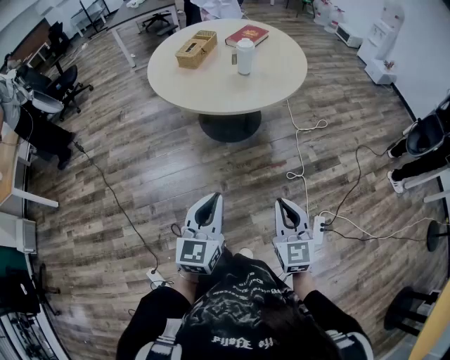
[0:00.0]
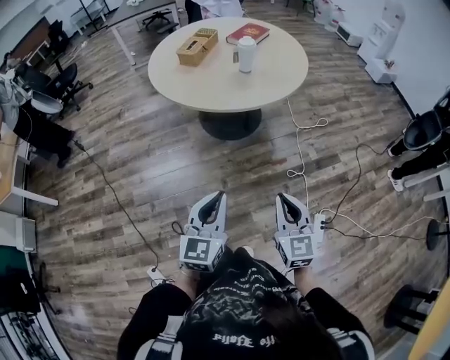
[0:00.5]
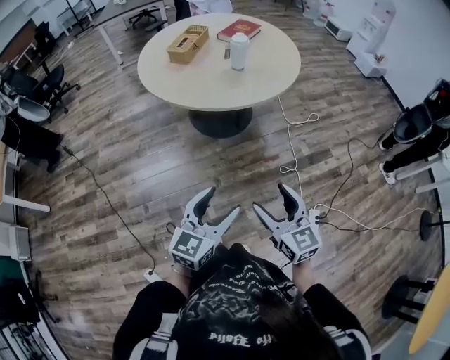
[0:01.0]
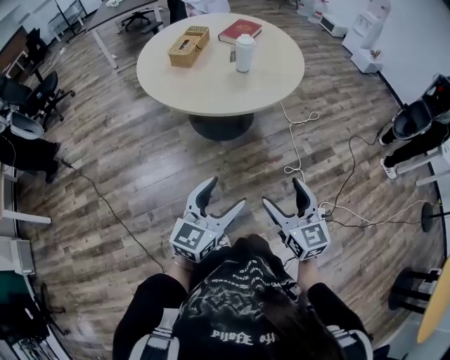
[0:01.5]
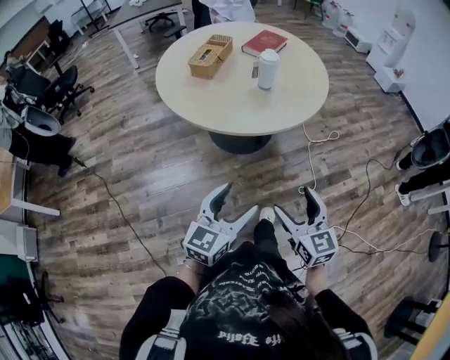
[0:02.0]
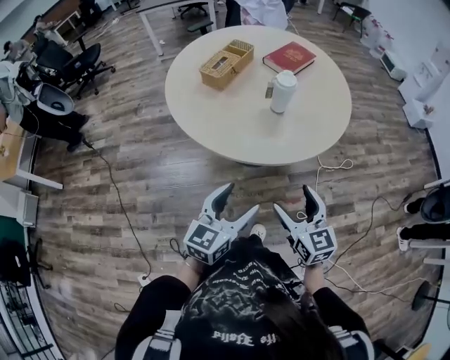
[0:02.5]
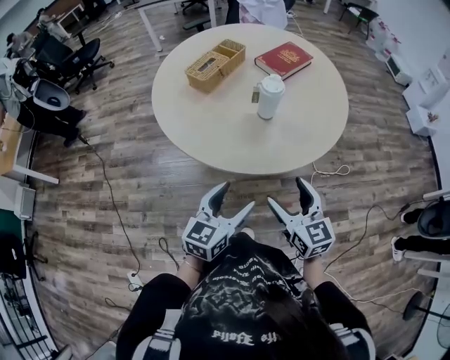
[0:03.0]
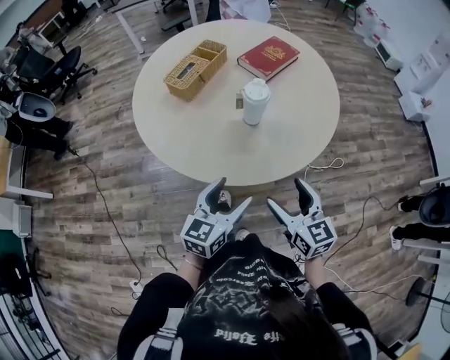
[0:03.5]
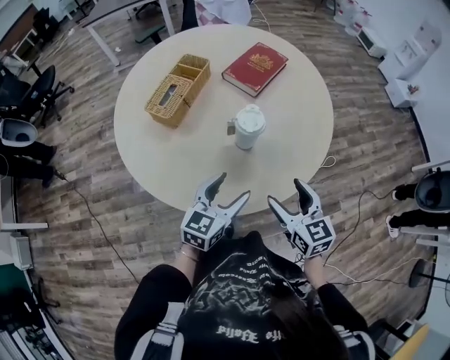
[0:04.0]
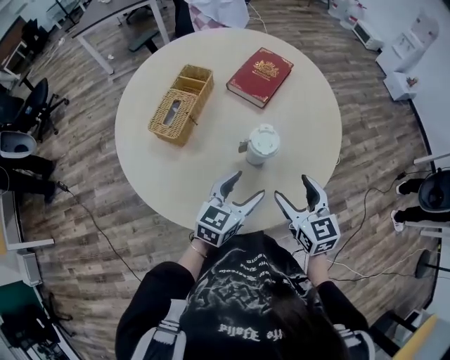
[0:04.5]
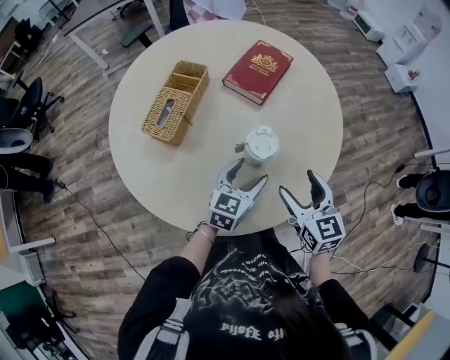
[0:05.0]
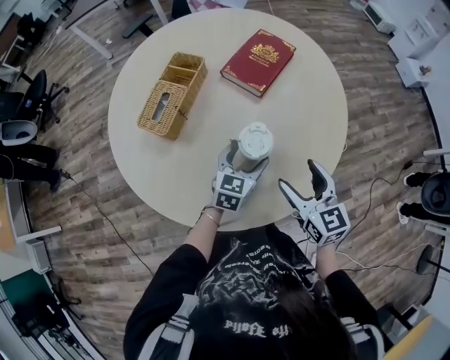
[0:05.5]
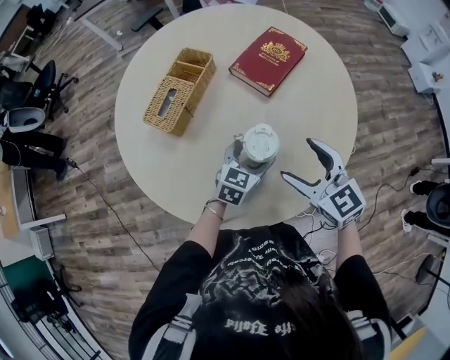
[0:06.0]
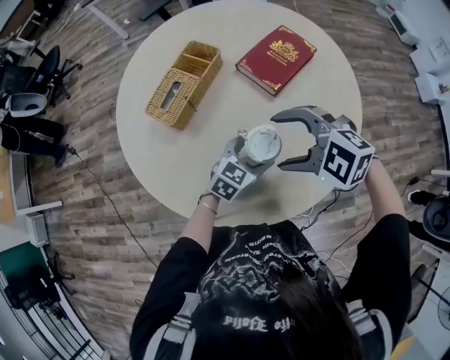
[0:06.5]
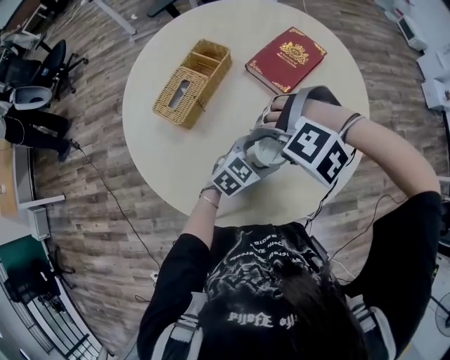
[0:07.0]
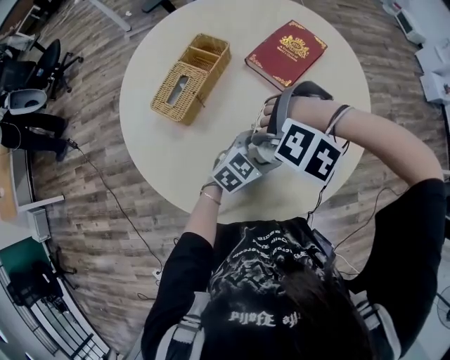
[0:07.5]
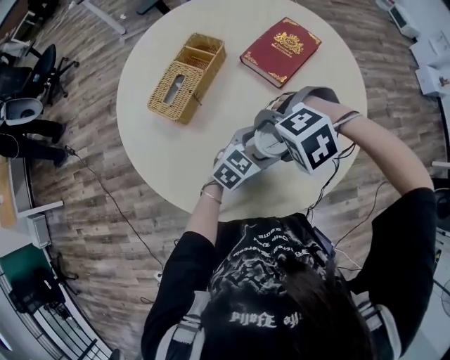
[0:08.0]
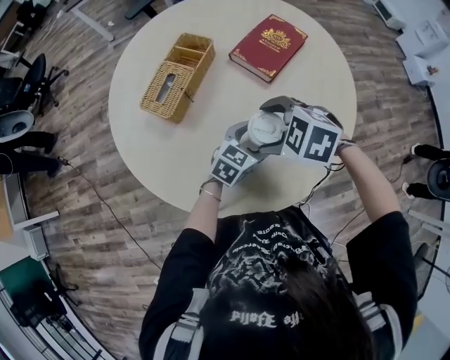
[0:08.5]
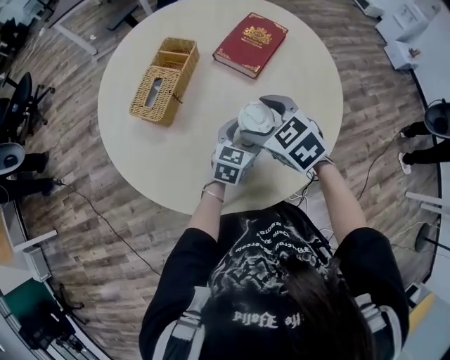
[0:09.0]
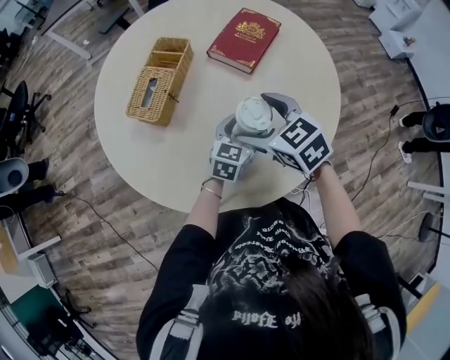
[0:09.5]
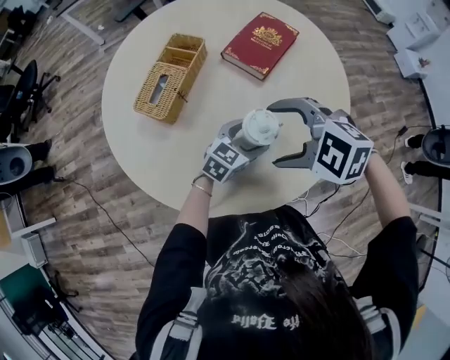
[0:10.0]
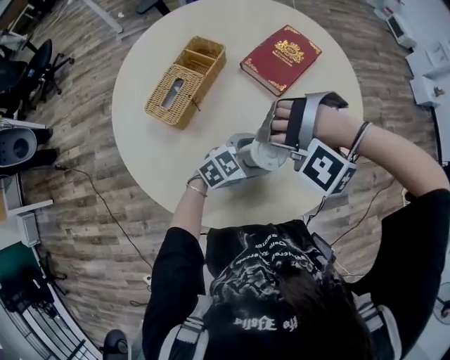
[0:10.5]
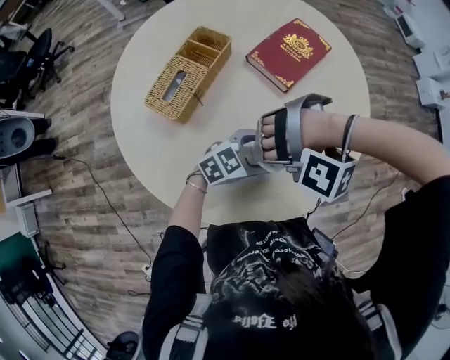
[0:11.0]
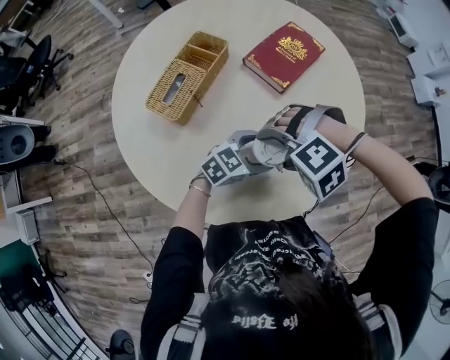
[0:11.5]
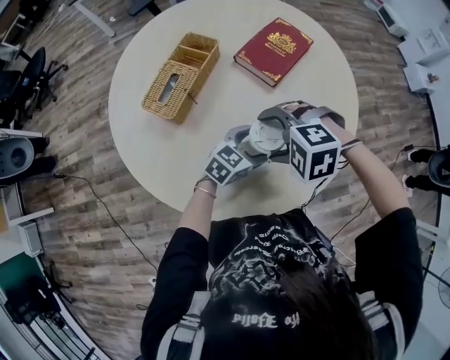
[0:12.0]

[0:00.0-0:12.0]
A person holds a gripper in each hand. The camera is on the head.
0:00.0 to 0:02.0: The right gripper goes approximately 15 cm forward and to the left, and opens its fingers; the left gripper shifts approximately 15 cm forward, and opens its fingers.
0:02.0 to 0:04.0: The pair of grippers is taken forward, some 40 cm.
0:04.0 to 0:06.0: The left gripper travels forward and downward by approximately 20 cm; the right gripper goes about 15 cm forward, and changes its angle by some 20 degrees.
0:06.0 to 0:08.0: The right gripper shifts by approximately 10 cm, and angles its fingers downward, by roughly 50 degrees.
0:08.0 to 0:10.0: The right gripper is displaced upward by approximately 5 cm, and swivels some 40 degrees.
0:10.0 to 0:12.0: The right gripper travels downward by approximately 5 cm, and turns by approximately 20 degrees.

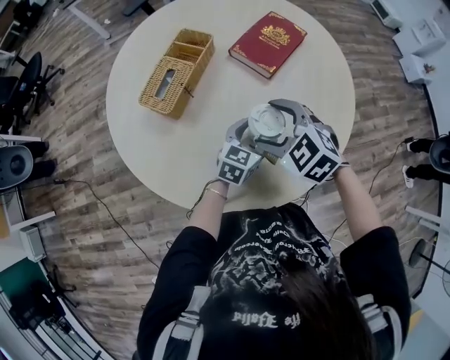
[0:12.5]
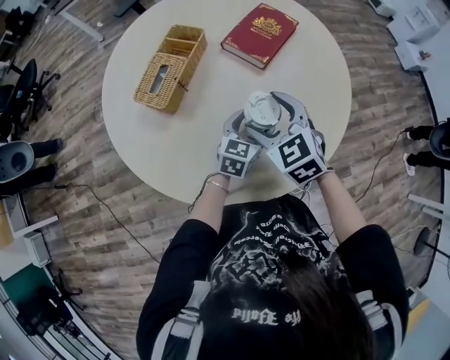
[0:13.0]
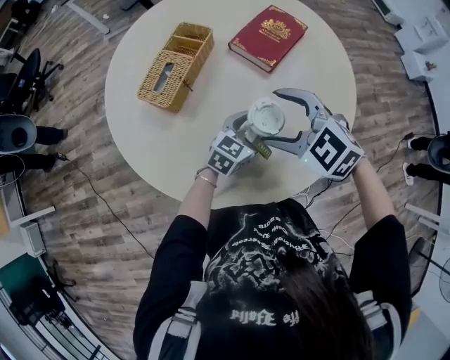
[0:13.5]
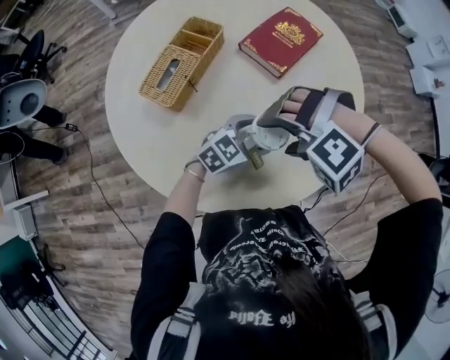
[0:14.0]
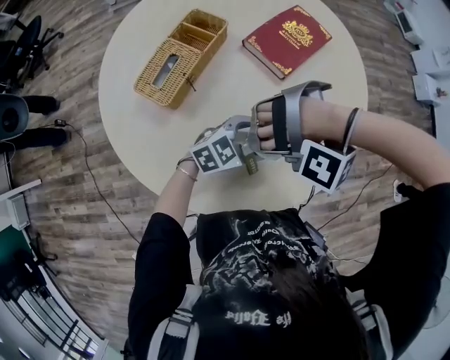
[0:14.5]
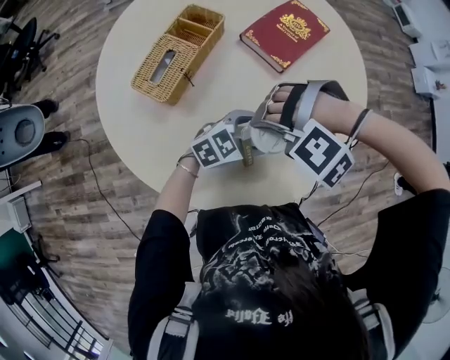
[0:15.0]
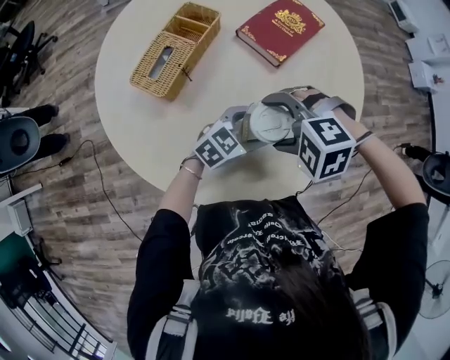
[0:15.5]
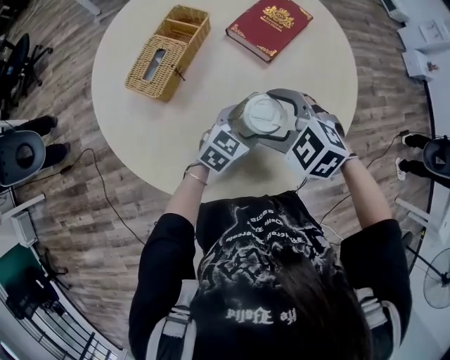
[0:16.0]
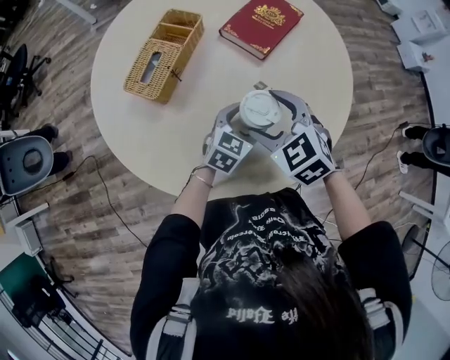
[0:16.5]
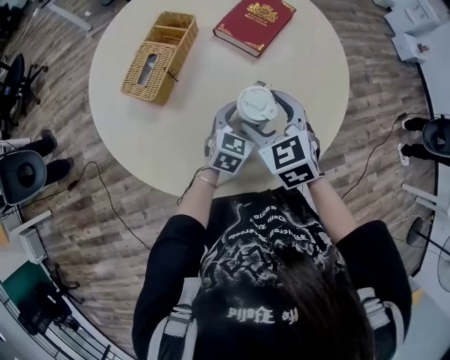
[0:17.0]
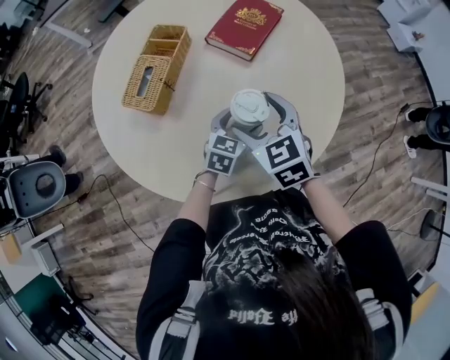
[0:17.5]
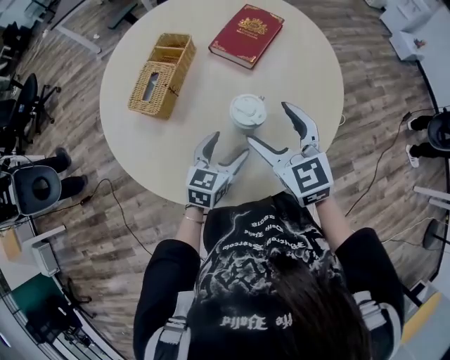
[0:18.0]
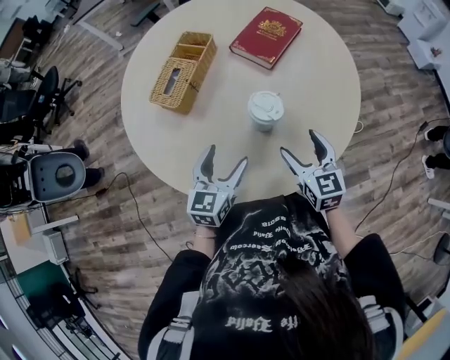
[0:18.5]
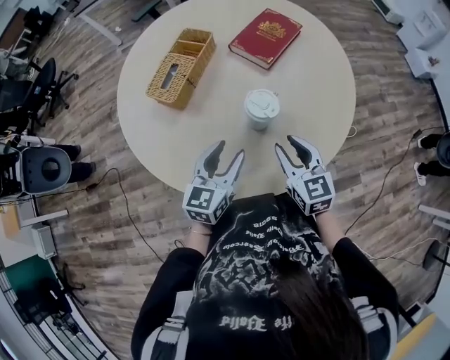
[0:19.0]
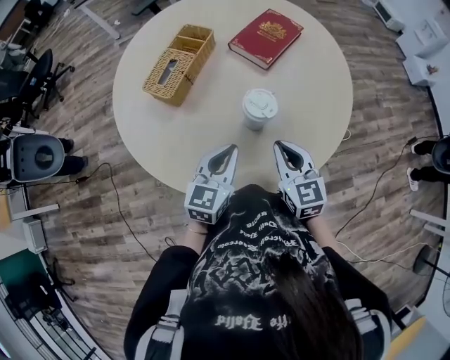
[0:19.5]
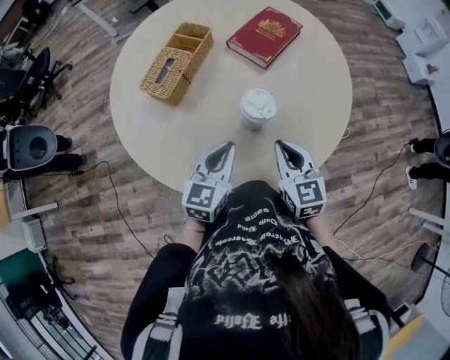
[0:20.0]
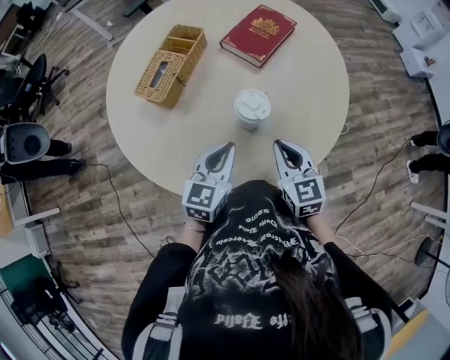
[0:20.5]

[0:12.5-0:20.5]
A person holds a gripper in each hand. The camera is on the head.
0:12.5 to 0:14.5: The left gripper changes its angle by roughly 30 degrees, while the right gripper rotates around the line of its fingers by roughly 110 degrees, counterclockwise from behind.
0:14.5 to 0:16.5: The left gripper rotates approximately 30 degrees. Meanwhile the right gripper rolls clockwise, seen from behind, by about 120 degrees.
0:16.5 to 0:18.5: The right gripper travels to the right and backward by roughly 10 cm, and turns by approximately 40 degrees. Meanwhile the left gripper is displaced backward, to the left and upward by approximately 15 cm, and changes its angle by some 20 degrees.
0:18.5 to 0:20.5: The left gripper closes. The right gripper closes its fingers.

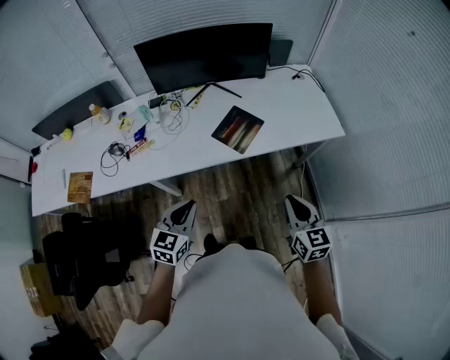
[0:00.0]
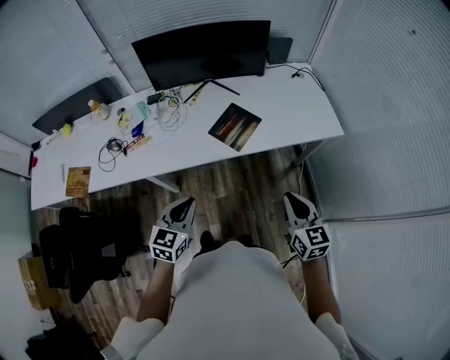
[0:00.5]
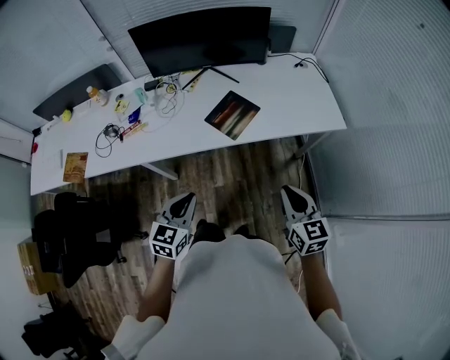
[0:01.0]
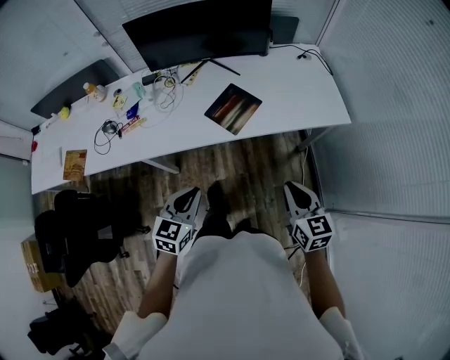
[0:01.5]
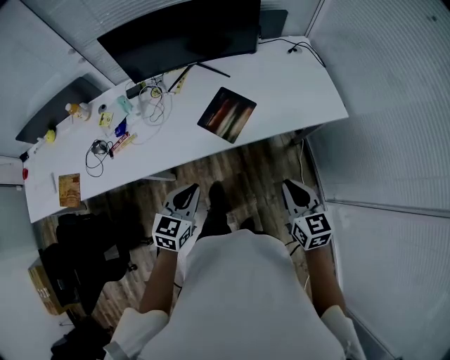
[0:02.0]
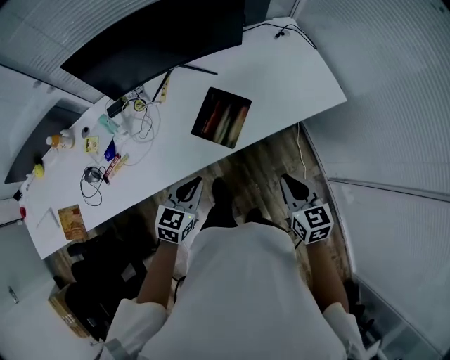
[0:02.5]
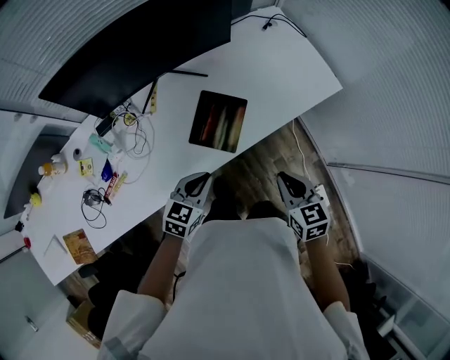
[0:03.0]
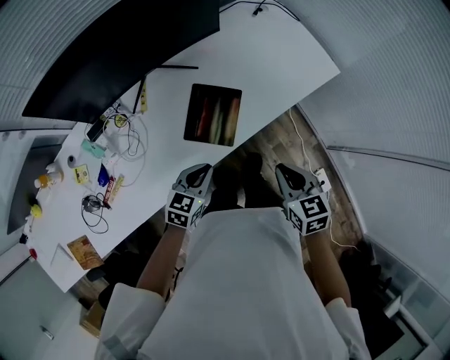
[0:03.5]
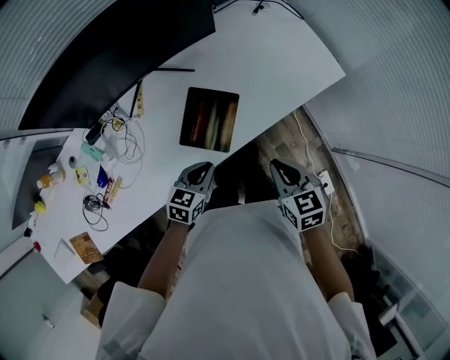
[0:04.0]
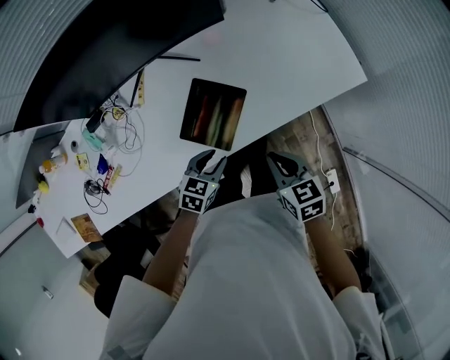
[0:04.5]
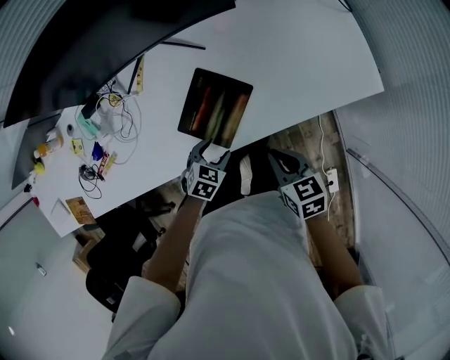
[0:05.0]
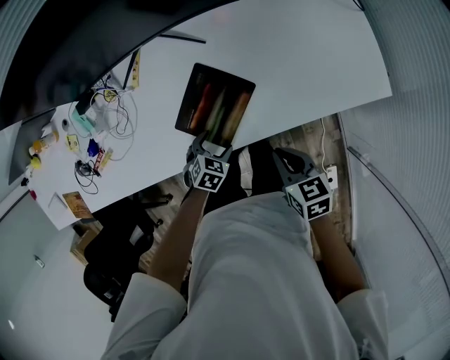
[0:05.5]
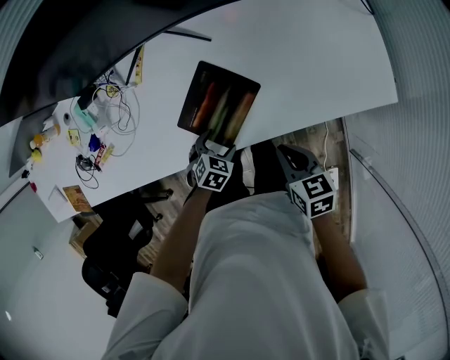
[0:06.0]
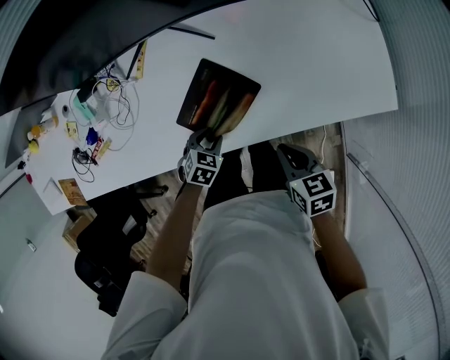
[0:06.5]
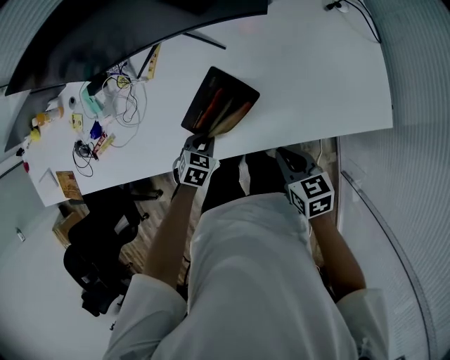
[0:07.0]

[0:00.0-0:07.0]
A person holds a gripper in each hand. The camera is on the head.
0:00.0 to 0:02.0: The left gripper goes some 10 cm forward and to the right, while the right gripper heads forward, covering roughly 5 cm.
0:02.0 to 0:03.5: The right gripper shifts some 15 cm to the left, forward and downward, and turns by approximately 20 degrees, while the left gripper moves forward and downward, approximately 20 cm, and rotates approximately 30 degrees.
0:03.5 to 0:05.0: The left gripper shifts roughly 15 cm downward and to the right, changes its angle by roughly 30 degrees, and opens its fingers; the right gripper moves downward and forward, about 15 cm, and changes its angle by roughly 20 degrees.
0:05.0 to 0:07.0: The left gripper shifts by some 5 cm, and closes, while the right gripper ends up approximately 5 cm from where it was.
